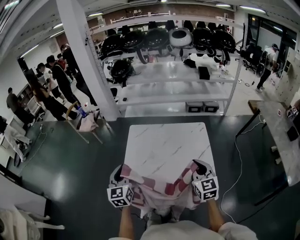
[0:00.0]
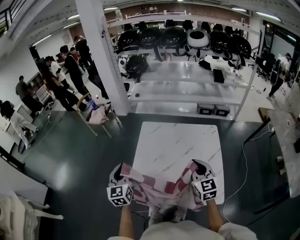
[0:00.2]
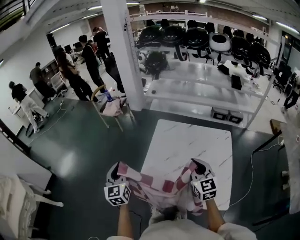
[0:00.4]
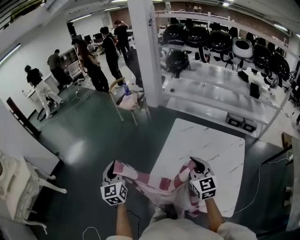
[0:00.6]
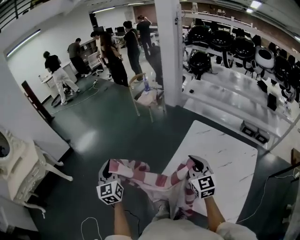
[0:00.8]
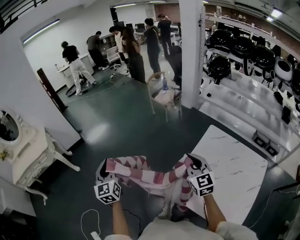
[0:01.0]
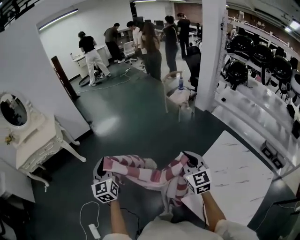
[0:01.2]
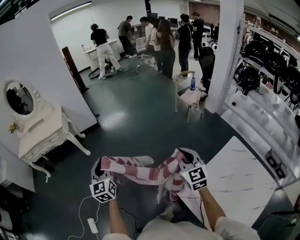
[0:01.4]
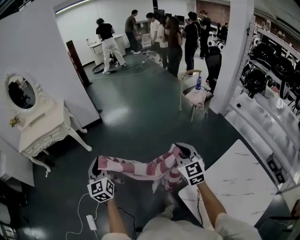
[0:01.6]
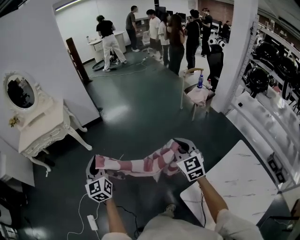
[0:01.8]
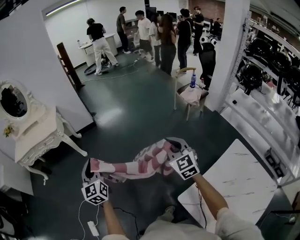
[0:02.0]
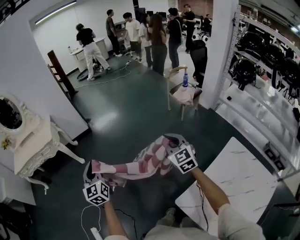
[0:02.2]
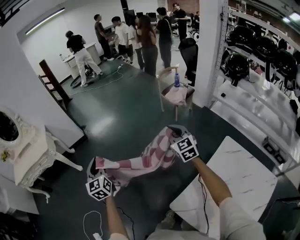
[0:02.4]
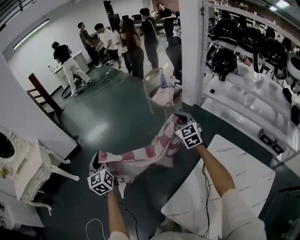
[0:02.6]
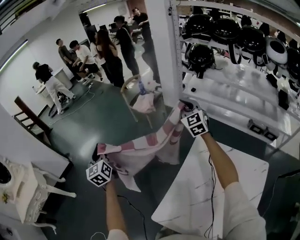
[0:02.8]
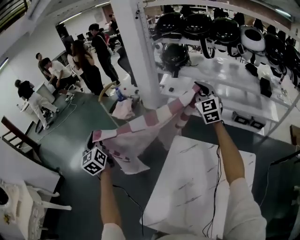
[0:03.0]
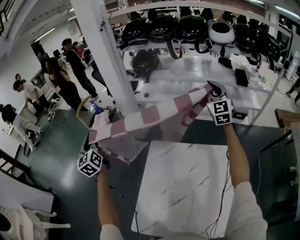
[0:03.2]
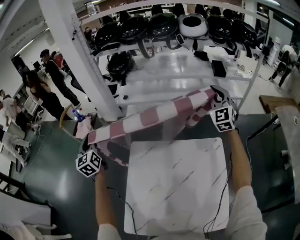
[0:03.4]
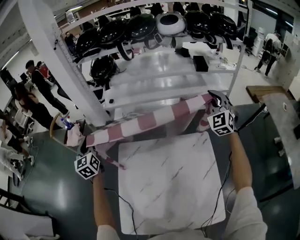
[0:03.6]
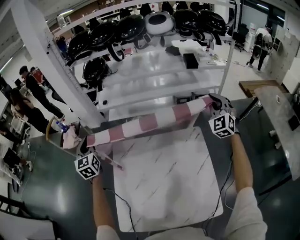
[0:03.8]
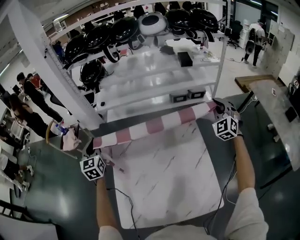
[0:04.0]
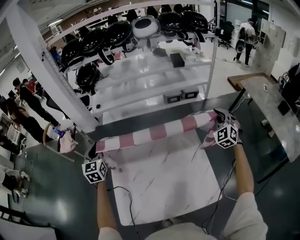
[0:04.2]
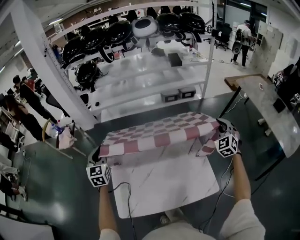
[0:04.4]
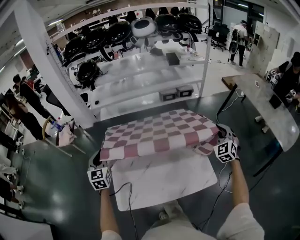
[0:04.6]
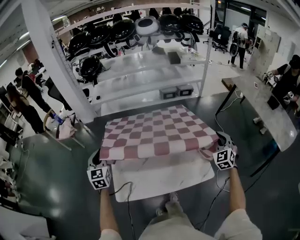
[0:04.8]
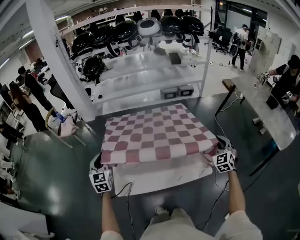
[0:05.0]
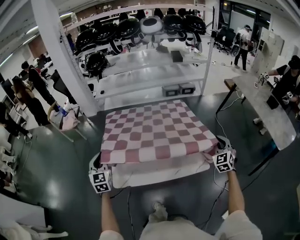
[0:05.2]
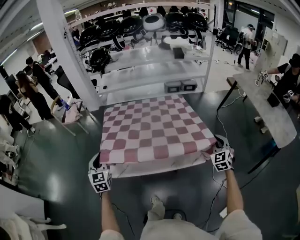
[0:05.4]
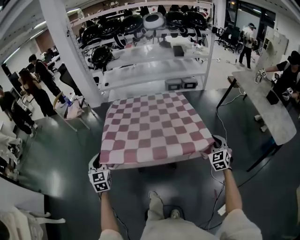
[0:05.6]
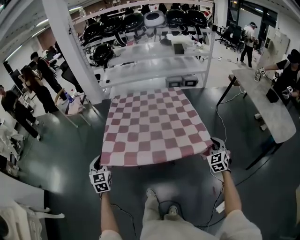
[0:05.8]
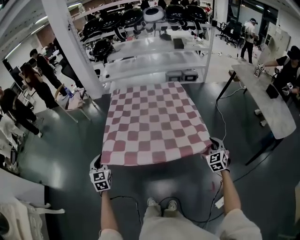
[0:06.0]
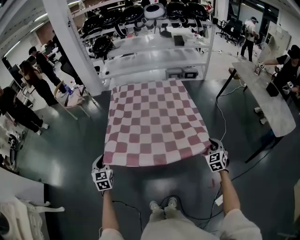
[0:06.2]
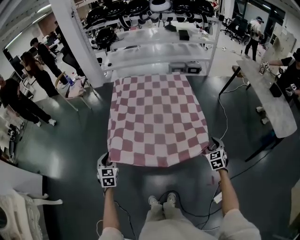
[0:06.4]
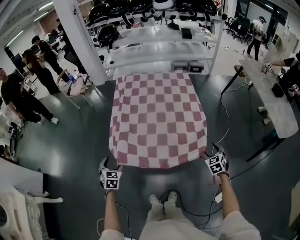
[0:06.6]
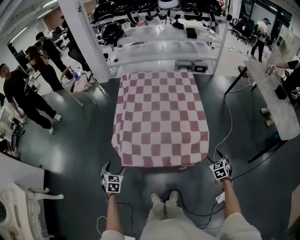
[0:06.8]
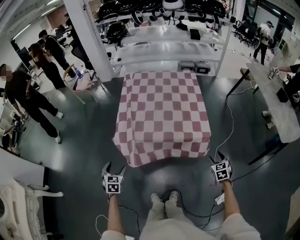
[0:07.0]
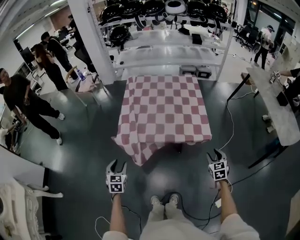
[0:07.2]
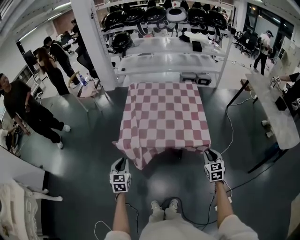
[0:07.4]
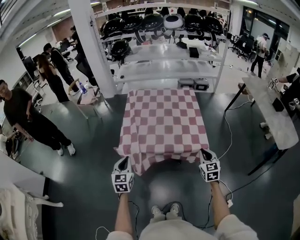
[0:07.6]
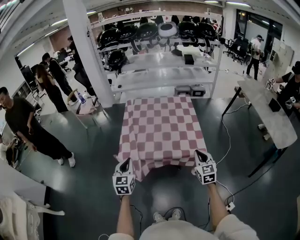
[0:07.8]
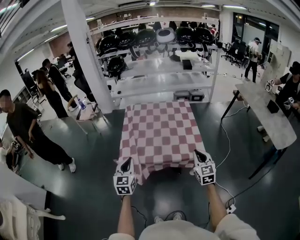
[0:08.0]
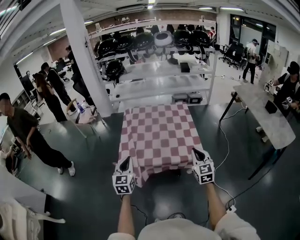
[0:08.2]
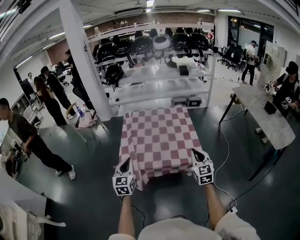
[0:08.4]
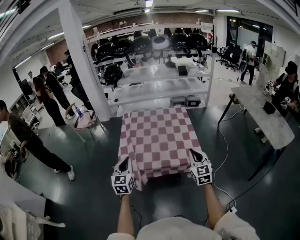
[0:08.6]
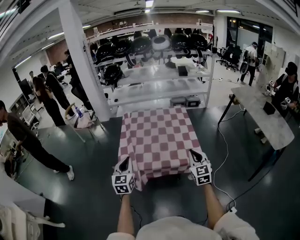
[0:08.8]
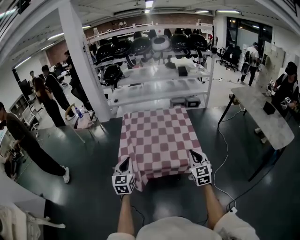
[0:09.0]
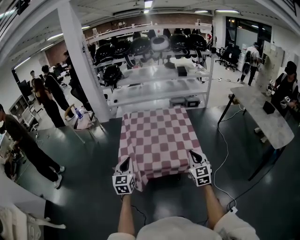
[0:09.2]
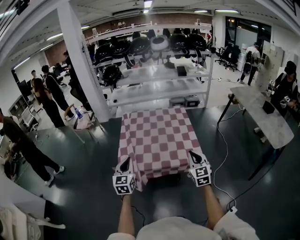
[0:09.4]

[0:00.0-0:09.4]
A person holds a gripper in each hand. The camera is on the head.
0:00.0 to 0:01.6: The two grippers travel together, some 60 cm. The right gripper changes its angle by some 70 degrees. Meanwhile the left gripper swivels some 70 degrees.
0:01.6 to 0:03.2: The pair of grippers is taken some 80 cm. The right gripper swivels about 70 degrees; the left gripper turns by approximately 40 degrees.
0:03.2 to 0:04.8: The right gripper moves about 70 cm, and changes its angle by roughly 40 degrees, while the left gripper shifts by about 40 cm, and rotates about 40 degrees.
0:04.8 to 0:06.2: The right gripper moves backward and downward, approximately 30 cm. The left gripper shifts about 35 cm backward.
0:06.2 to 0:07.8: The right gripper heads to the left and upward, covering some 15 cm, turns by approximately 20 degrees, and opens, then closes again; the left gripper is displaced to the right by roughly 5 cm, goes downward and returns, some 15 cm each way, and opens, then closes once more.
0:07.8 to 0:09.4: The grippers both shift upward by roughly 5 cm.

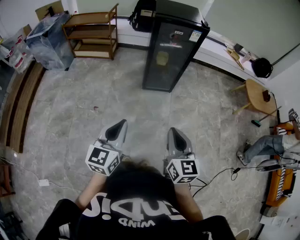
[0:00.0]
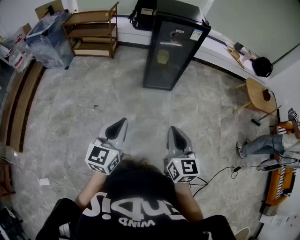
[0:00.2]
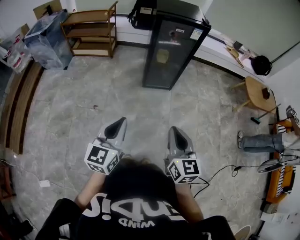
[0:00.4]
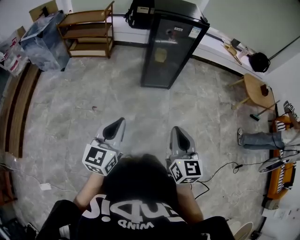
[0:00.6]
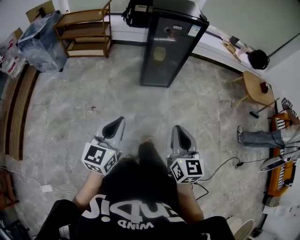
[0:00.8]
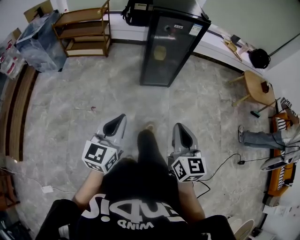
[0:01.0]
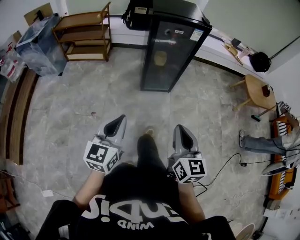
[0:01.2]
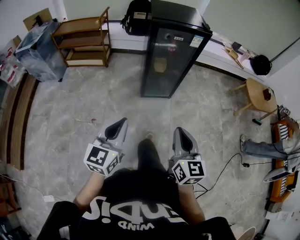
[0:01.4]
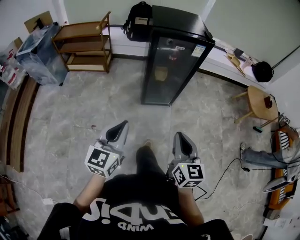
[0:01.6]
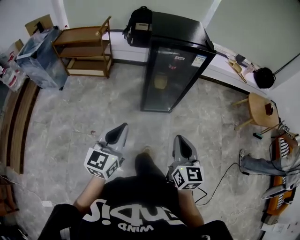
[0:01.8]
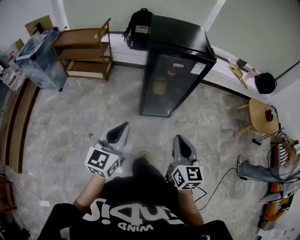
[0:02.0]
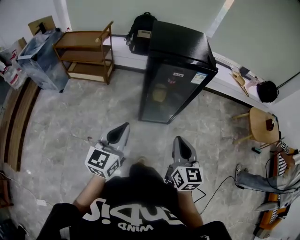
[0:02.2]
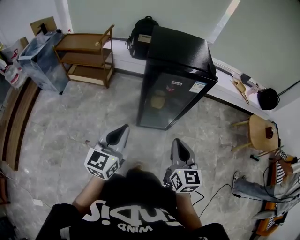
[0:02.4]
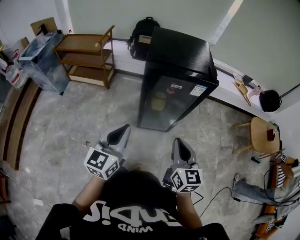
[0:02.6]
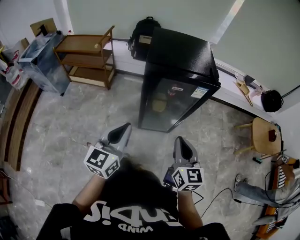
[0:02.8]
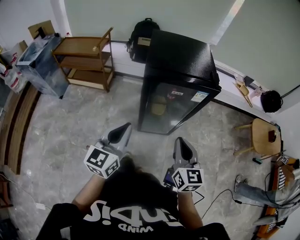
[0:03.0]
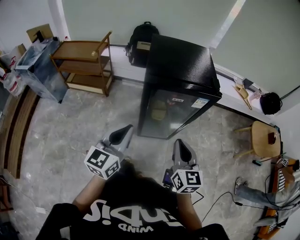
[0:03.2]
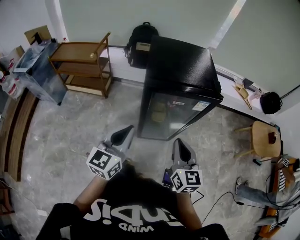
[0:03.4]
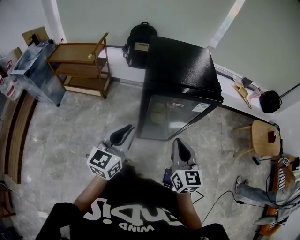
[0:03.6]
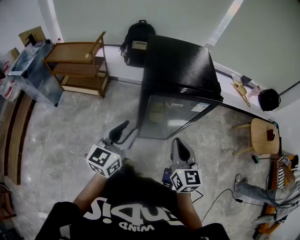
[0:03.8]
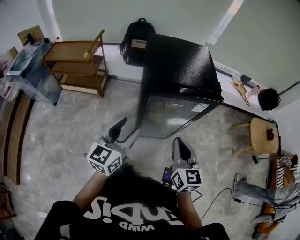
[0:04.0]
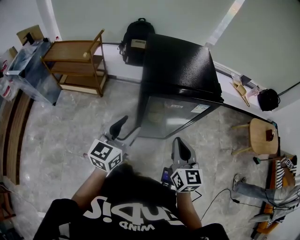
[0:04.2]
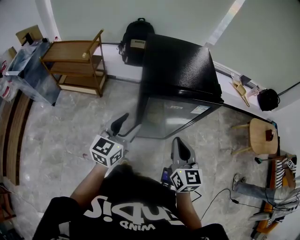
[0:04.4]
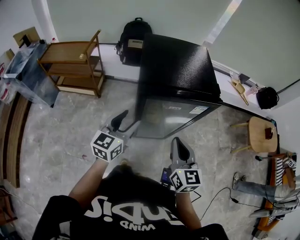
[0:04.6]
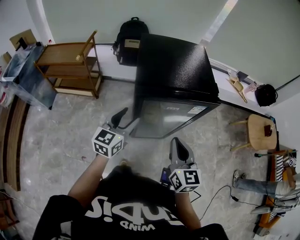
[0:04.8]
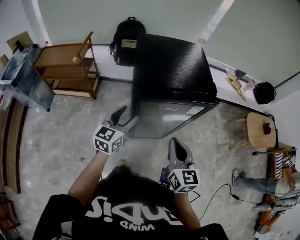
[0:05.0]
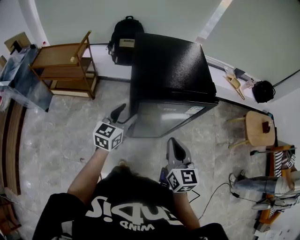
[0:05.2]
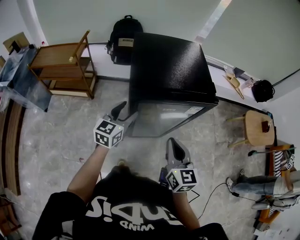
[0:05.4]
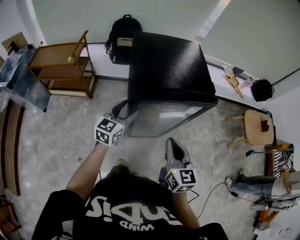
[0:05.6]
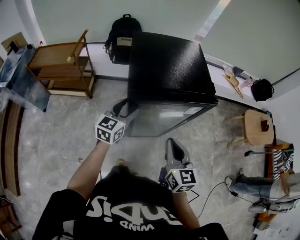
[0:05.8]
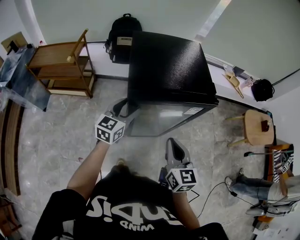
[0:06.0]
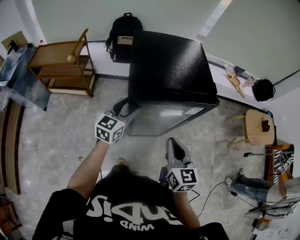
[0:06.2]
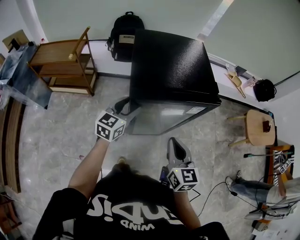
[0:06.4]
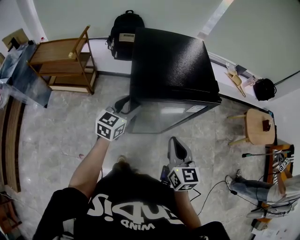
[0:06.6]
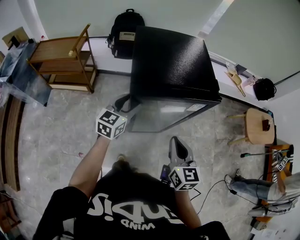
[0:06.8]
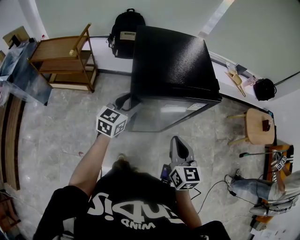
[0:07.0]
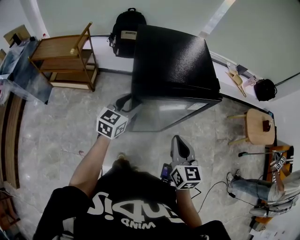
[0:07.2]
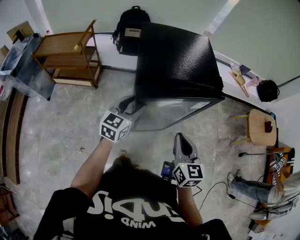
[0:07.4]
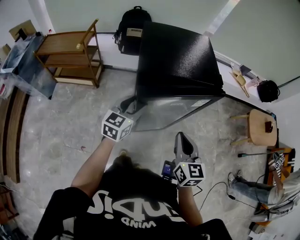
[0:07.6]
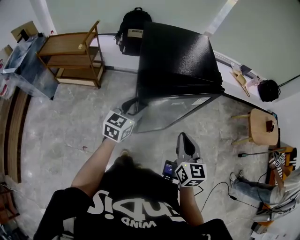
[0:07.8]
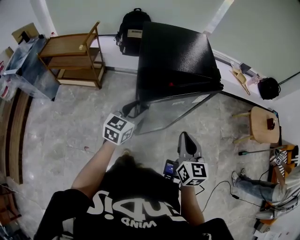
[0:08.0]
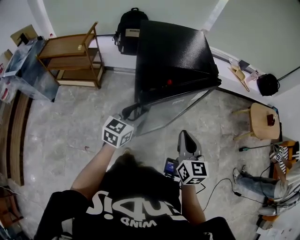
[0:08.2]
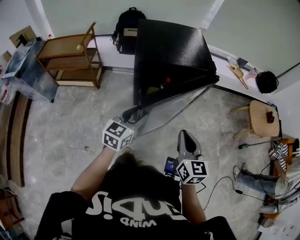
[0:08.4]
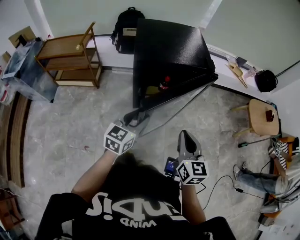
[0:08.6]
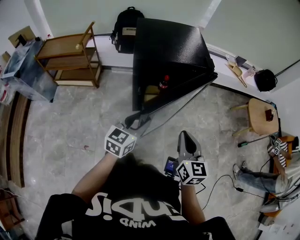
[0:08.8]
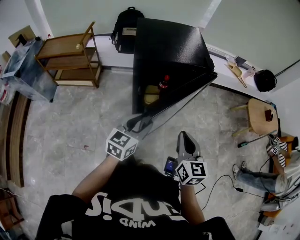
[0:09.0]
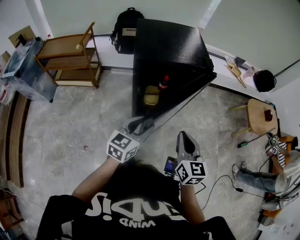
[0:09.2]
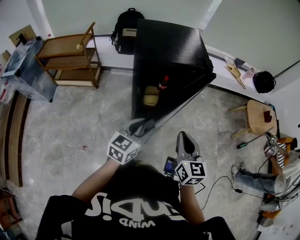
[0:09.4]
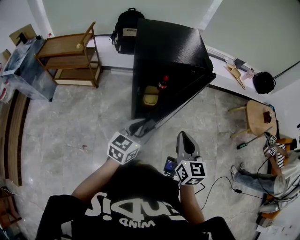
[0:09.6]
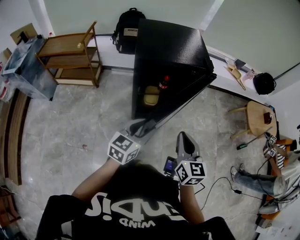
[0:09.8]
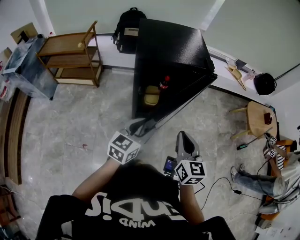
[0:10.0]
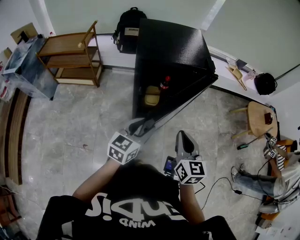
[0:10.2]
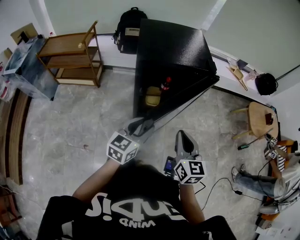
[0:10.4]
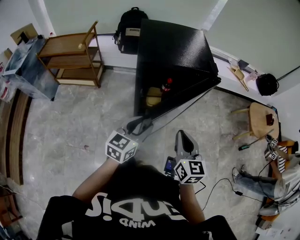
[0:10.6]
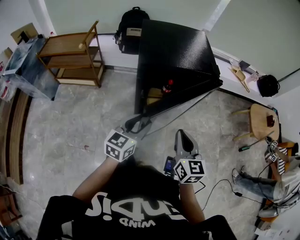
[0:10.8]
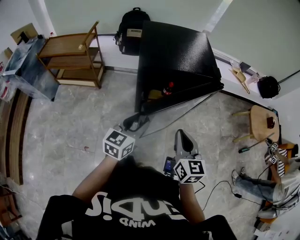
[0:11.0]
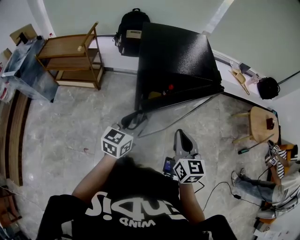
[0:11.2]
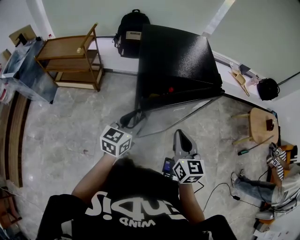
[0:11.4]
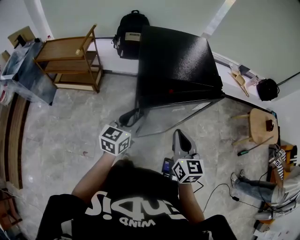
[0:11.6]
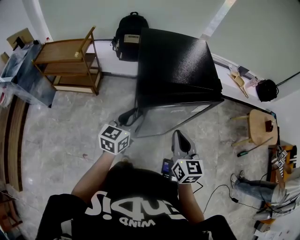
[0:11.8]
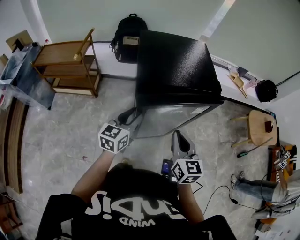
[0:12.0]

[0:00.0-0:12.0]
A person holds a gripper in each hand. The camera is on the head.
0:00.0 to 0:01.6: Both grippers move forward, approximately 20 cm.
0:01.6 to 0:03.0: Both grippers travel together forward, roughly 30 cm.
0:03.0 to 0:04.4: The grippers both shift forward by some 10 cm. The left gripper opens.
0:04.4 to 0:06.0: The left gripper shifts some 15 cm forward and downward.
0:06.0 to 0:07.6: The left gripper travels backward by approximately 5 cm.
0:07.6 to 0:09.0: The left gripper shifts some 15 cm backward and to the right. Meanwhile the right gripper is displaced backward by some 10 cm.
0:09.0 to 0:10.4: The grippers stay close to where they were, moving slightly.
0:10.4 to 0:12.0: The grippers both shift forward and to the left by about 15 cm.

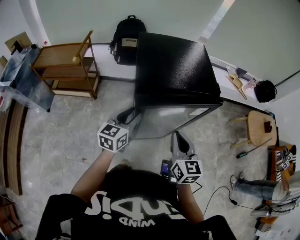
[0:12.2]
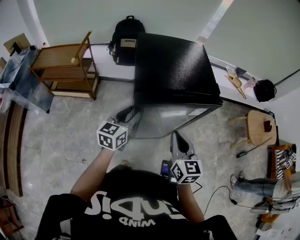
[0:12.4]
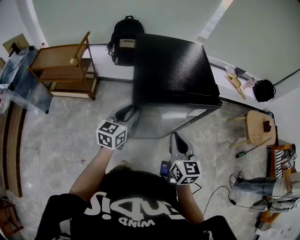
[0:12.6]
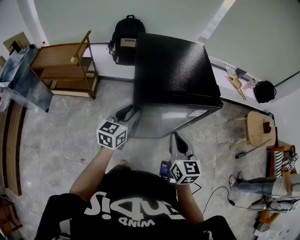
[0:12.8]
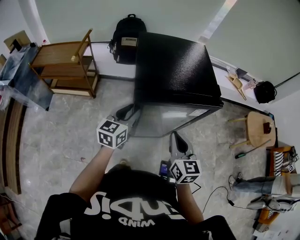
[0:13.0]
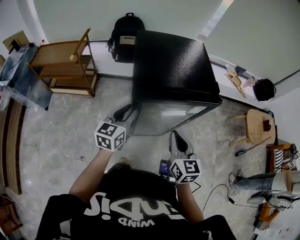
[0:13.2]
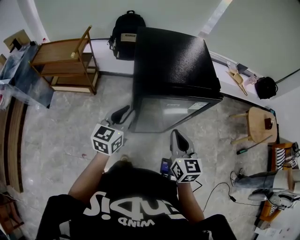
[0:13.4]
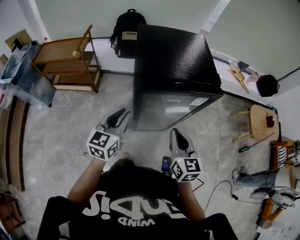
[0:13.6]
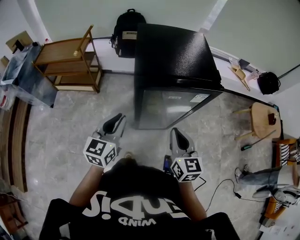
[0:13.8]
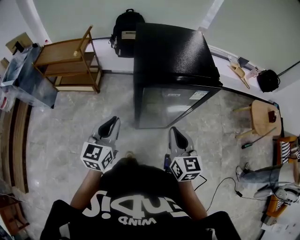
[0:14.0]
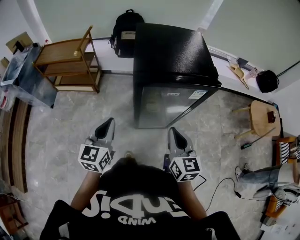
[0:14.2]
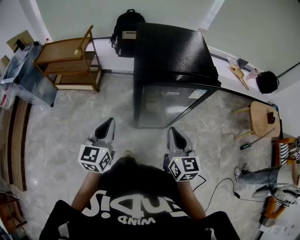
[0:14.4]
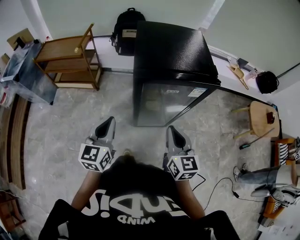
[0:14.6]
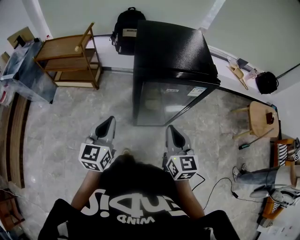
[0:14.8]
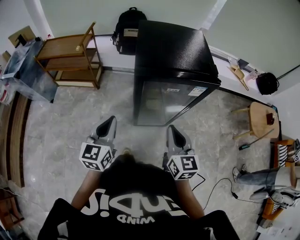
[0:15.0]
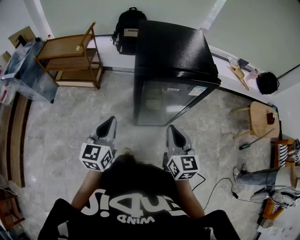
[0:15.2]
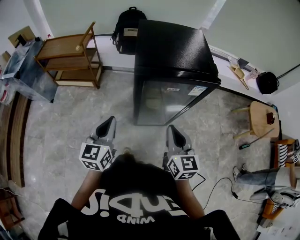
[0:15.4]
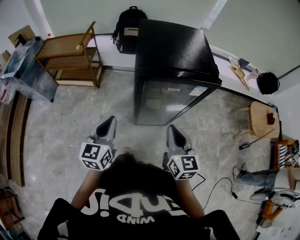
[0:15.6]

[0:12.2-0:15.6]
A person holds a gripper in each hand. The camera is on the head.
0:12.2 to 0:13.8: The left gripper is displaced backward by approximately 10 cm, and closes.
0:13.8 to 0:15.6: The left gripper shifts about 5 cm backward.
